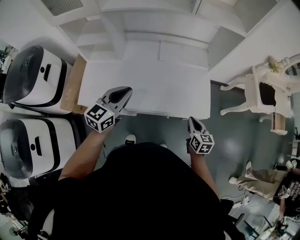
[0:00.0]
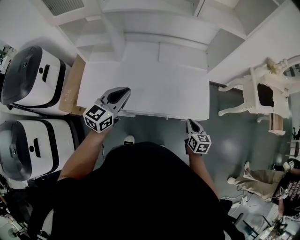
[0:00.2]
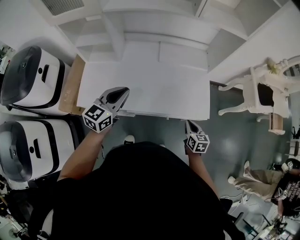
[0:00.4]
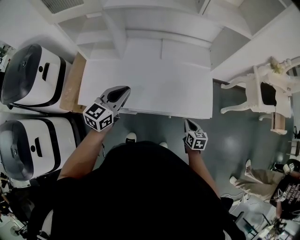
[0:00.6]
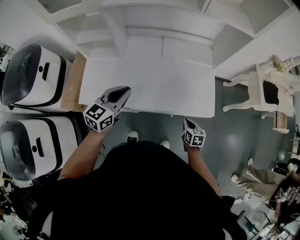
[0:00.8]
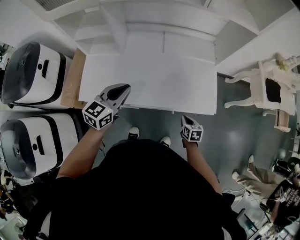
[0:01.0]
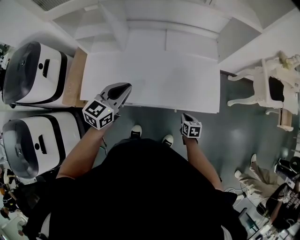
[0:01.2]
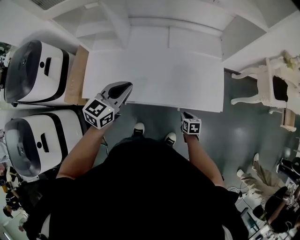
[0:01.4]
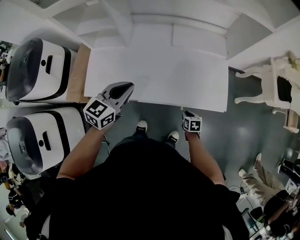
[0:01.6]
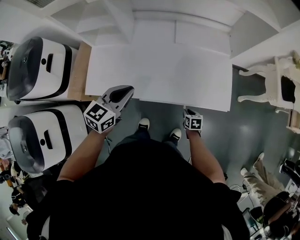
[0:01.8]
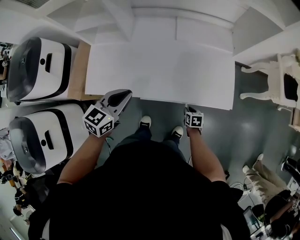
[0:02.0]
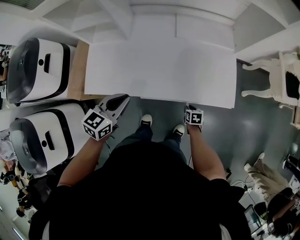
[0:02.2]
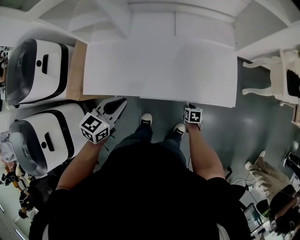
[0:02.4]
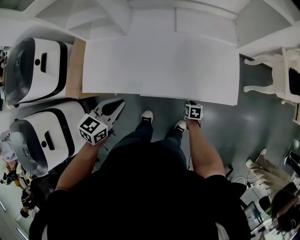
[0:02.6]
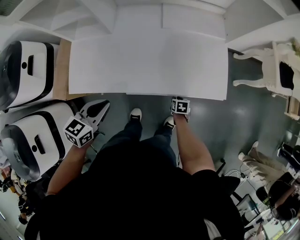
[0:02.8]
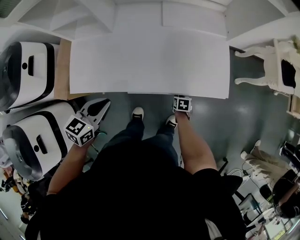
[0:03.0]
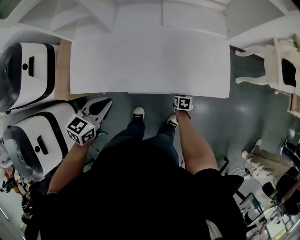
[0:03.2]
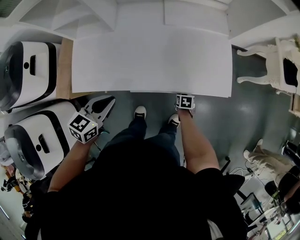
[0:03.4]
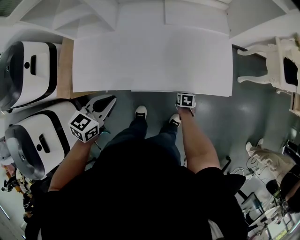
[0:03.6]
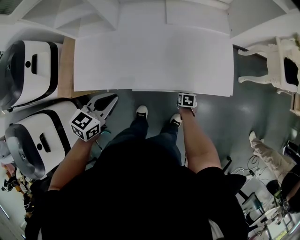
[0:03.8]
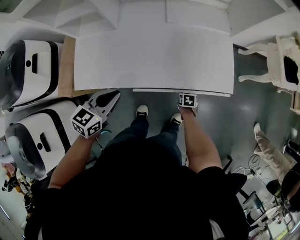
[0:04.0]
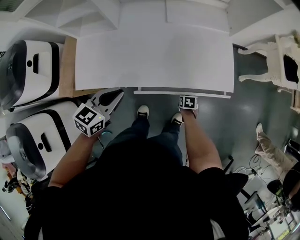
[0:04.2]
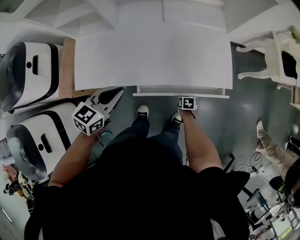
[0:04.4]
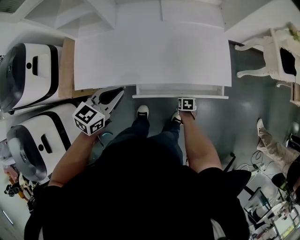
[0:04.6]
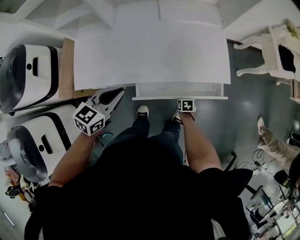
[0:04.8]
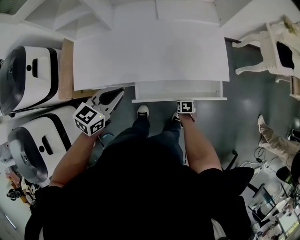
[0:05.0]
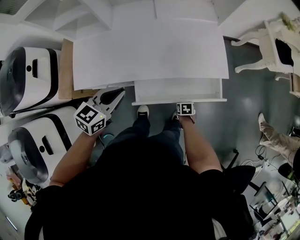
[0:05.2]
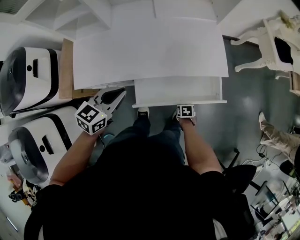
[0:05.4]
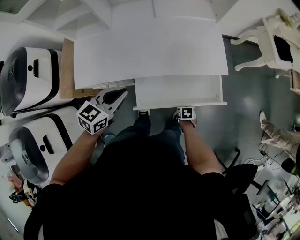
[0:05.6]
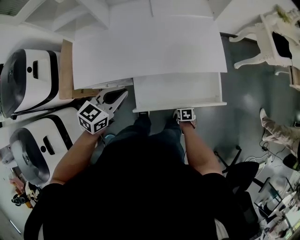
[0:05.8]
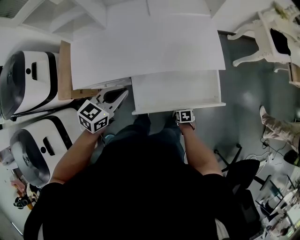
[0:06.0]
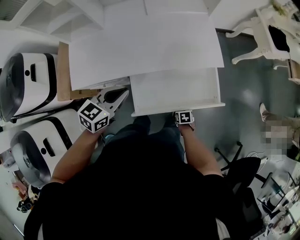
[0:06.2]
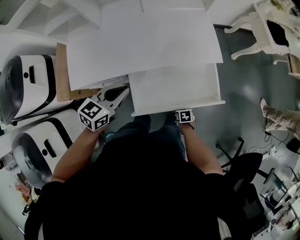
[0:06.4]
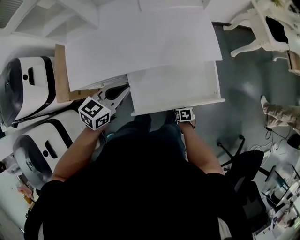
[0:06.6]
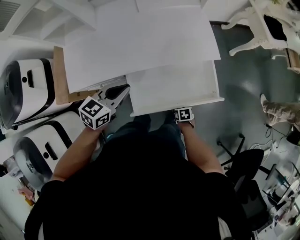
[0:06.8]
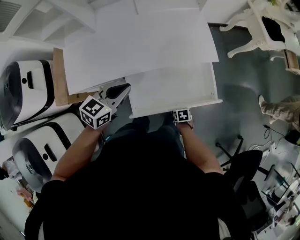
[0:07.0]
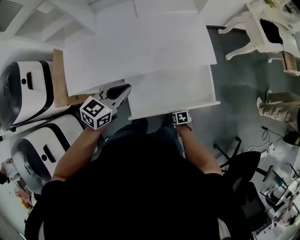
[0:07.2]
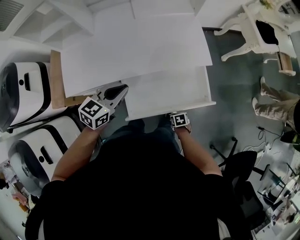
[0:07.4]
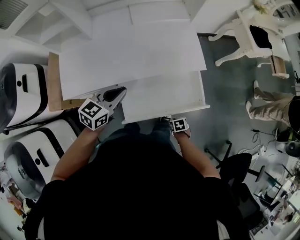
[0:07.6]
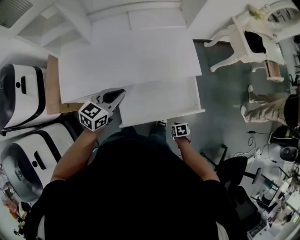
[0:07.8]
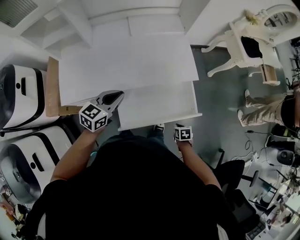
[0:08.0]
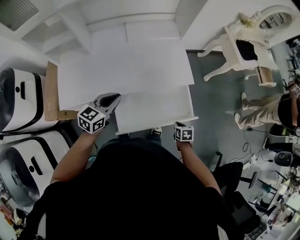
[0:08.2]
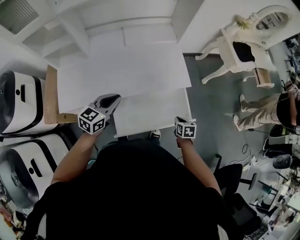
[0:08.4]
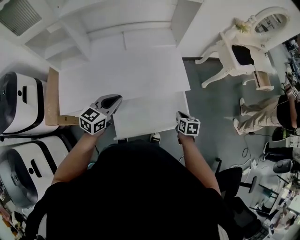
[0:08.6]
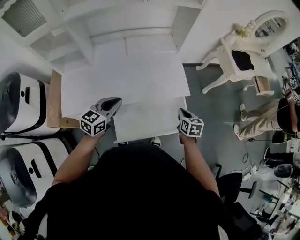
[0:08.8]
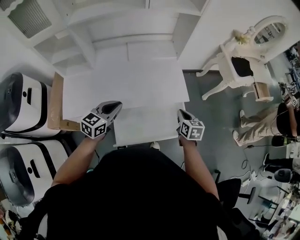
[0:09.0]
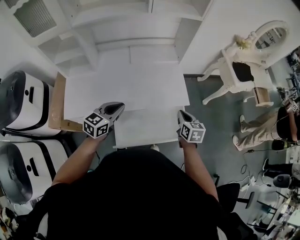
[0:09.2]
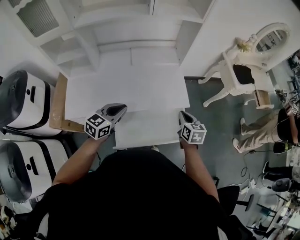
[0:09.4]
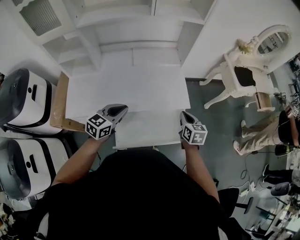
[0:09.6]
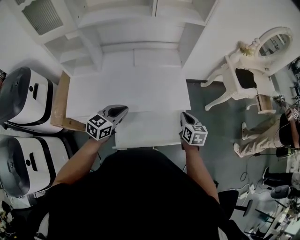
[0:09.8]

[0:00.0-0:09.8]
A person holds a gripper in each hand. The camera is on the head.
0:00.0 to 0:01.4: The right gripper moves downward, approximately 20 cm, and turns by some 30 degrees. The left gripper moves about 5 cm.
0:01.4 to 0:02.8: The left gripper shifts about 15 cm downward, backward and to the left; the right gripper travels downward by about 10 cm.
0:02.8 to 0:04.2: The grippers stay close to where they were, moving slightly.
0:04.2 to 0:05.6: The right gripper moves about 15 cm, while the left gripper changes place by approximately 5 cm.
0:05.6 to 0:07.0: The left gripper moves about 5 cm. Meanwhile the right gripper shifts by approximately 5 cm.
0:07.0 to 0:08.4: The left gripper ends up roughly 5 cm from where it was. Meanwhile the right gripper moves upward, approximately 20 cm, and changes its angle by roughly 20 degrees.
0:08.4 to 0:09.8: The left gripper changes place by about 5 cm. Meanwhile the right gripper moves upward and forward, approximately 20 cm, and rotates some 30 degrees.

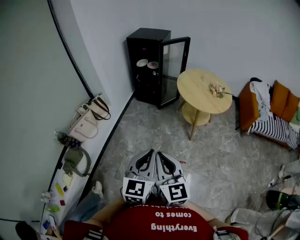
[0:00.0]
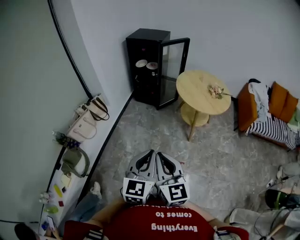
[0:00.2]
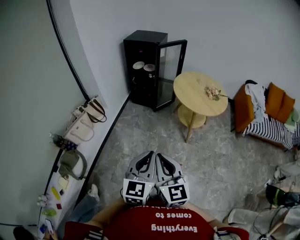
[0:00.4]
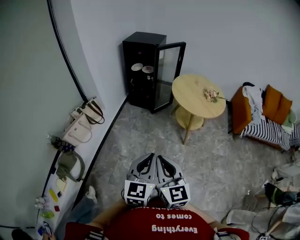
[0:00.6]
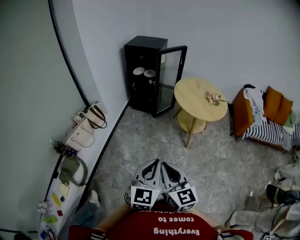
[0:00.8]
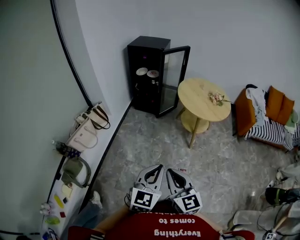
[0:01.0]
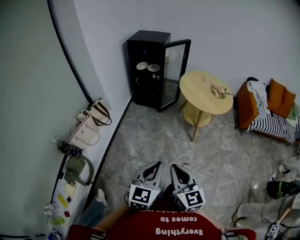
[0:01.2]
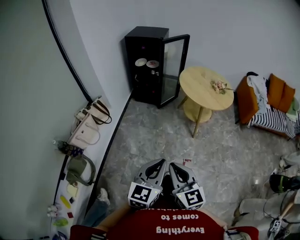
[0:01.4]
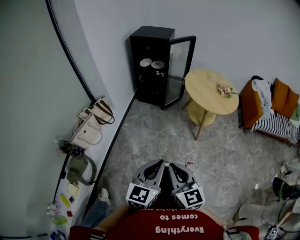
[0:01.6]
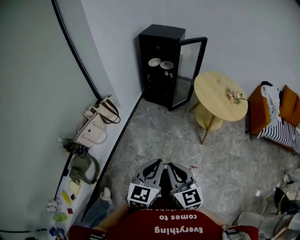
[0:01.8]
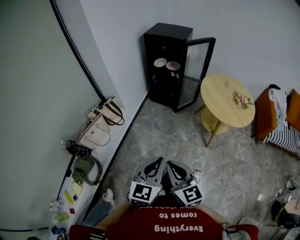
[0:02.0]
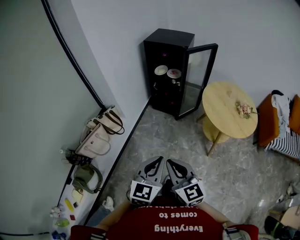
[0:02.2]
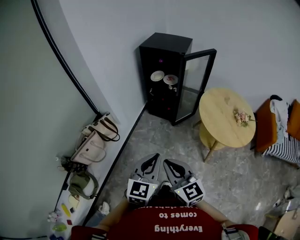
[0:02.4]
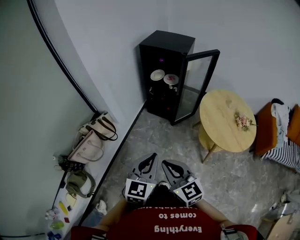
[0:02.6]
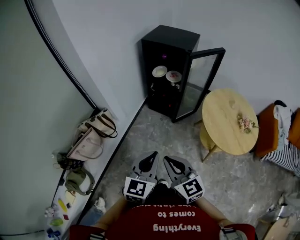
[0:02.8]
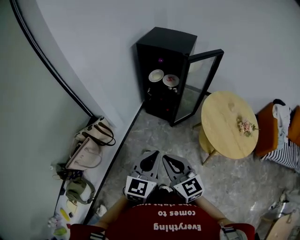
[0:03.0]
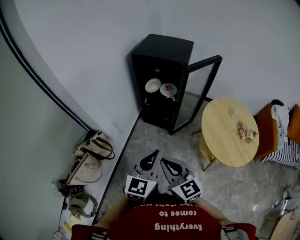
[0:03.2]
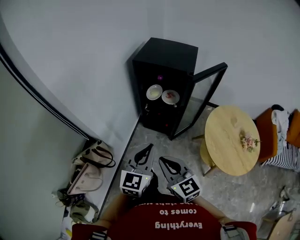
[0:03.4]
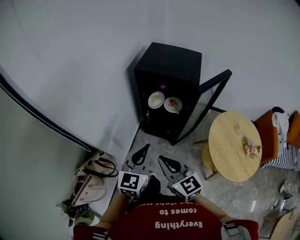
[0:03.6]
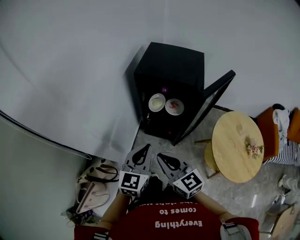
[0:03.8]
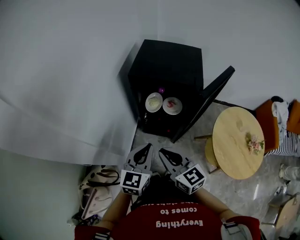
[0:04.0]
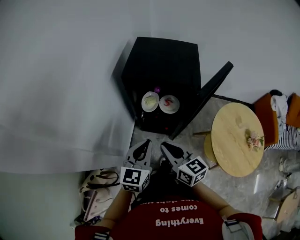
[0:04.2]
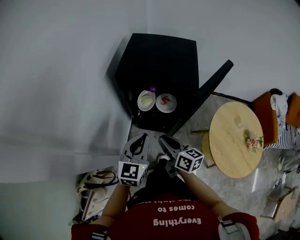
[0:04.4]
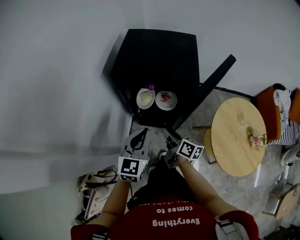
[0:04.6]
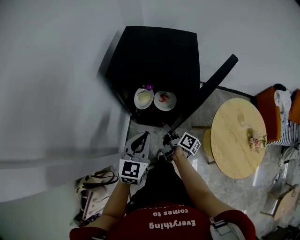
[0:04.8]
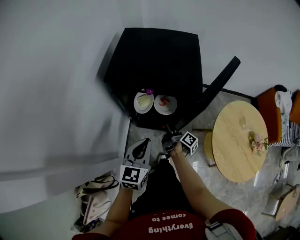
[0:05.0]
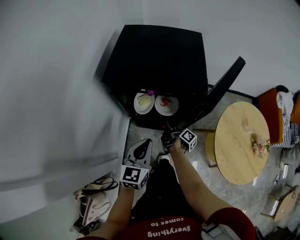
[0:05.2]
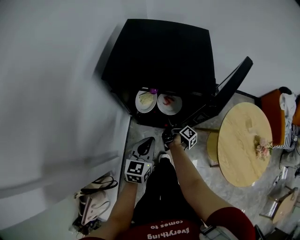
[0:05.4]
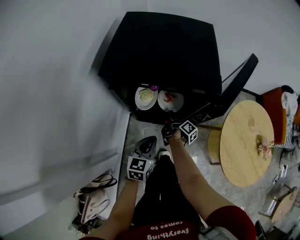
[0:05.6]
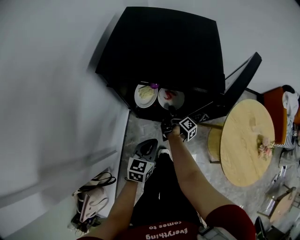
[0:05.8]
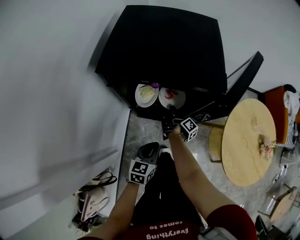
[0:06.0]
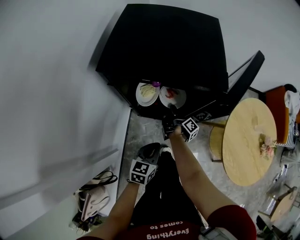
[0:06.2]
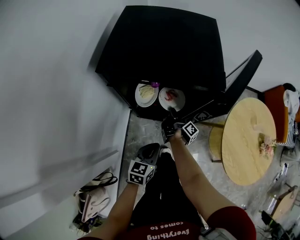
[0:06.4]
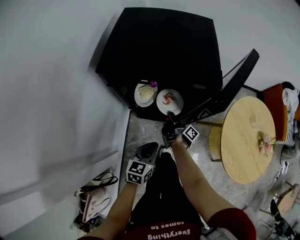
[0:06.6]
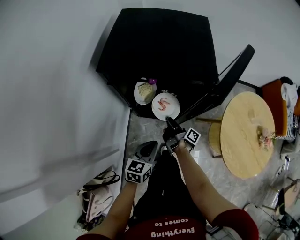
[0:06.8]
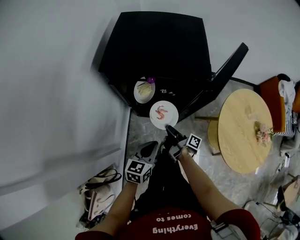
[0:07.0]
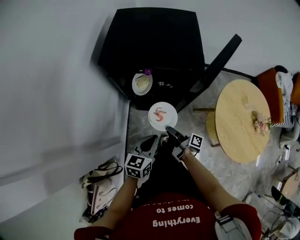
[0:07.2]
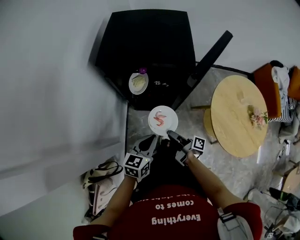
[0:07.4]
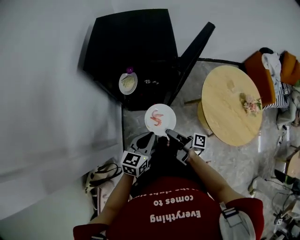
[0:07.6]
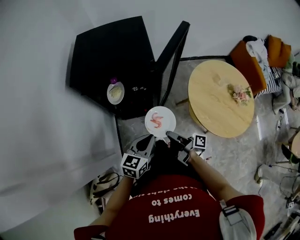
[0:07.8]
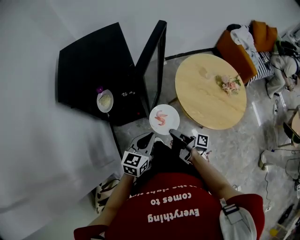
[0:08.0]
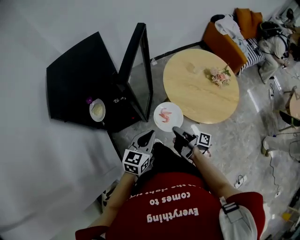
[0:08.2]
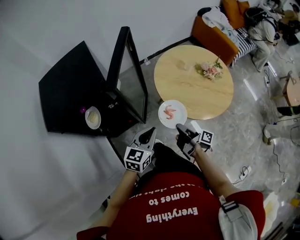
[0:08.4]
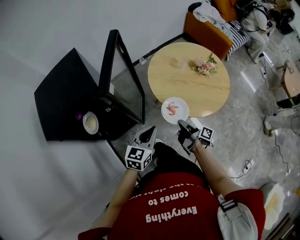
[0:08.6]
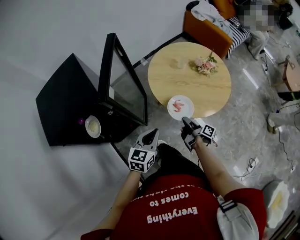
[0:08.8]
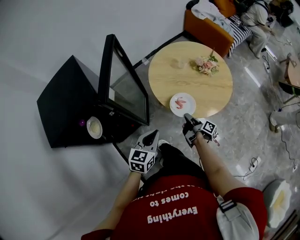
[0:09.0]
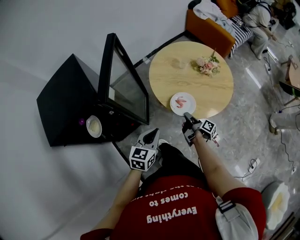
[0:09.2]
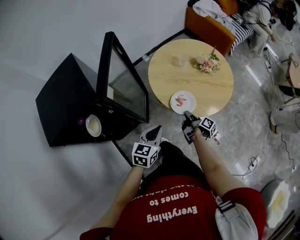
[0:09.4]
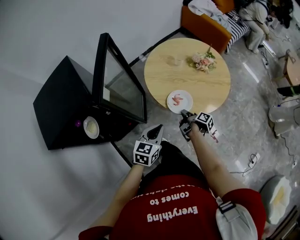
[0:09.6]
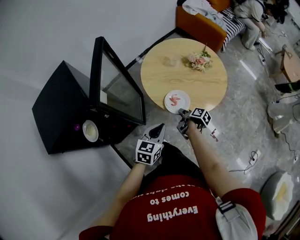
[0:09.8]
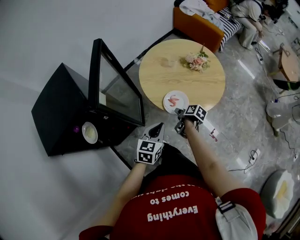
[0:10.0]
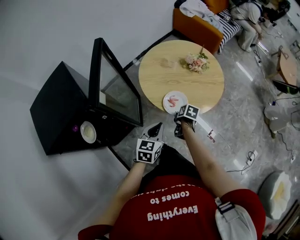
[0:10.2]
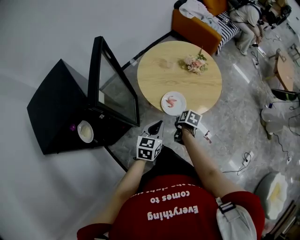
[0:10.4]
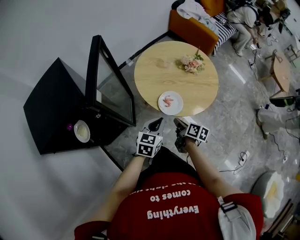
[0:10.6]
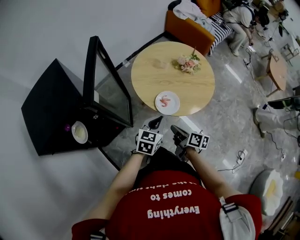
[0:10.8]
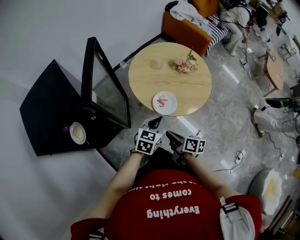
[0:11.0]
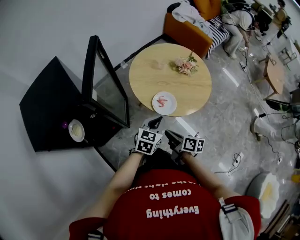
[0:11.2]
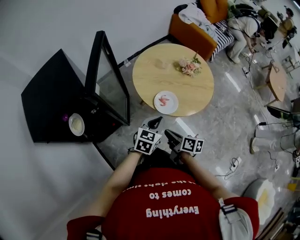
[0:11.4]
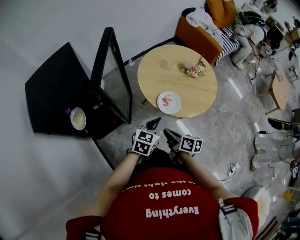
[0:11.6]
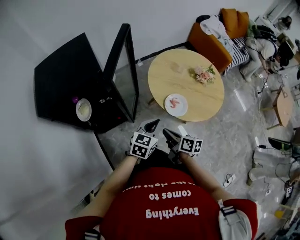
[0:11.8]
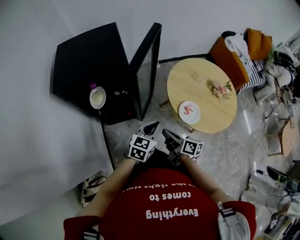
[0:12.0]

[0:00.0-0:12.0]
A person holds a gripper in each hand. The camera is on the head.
0:00.0 to 0:01.6: The left gripper moves some 10 cm.
0:01.6 to 0:03.0: The left gripper changes place by some 40 cm.
0:03.0 to 0:04.4: The left gripper shifts by approximately 50 cm.
0:04.4 to 0:06.0: The left gripper heads downward, covering roughly 25 cm, and rotates some 30 degrees.
0:06.0 to 0:07.6: The left gripper travels upward by approximately 15 cm.
0:07.6 to 0:09.0: The left gripper moves approximately 20 cm, and swivels roughly 30 degrees.
0:09.0 to 0:10.4: The left gripper moves roughly 10 cm.
0:10.4 to 0:12.0: The left gripper shifts by about 10 cm.

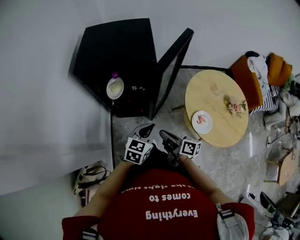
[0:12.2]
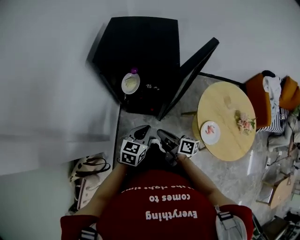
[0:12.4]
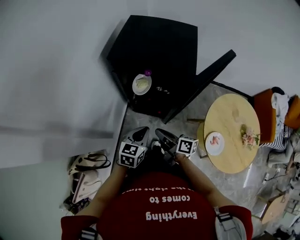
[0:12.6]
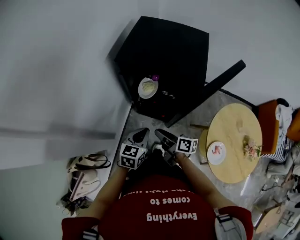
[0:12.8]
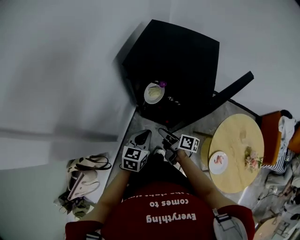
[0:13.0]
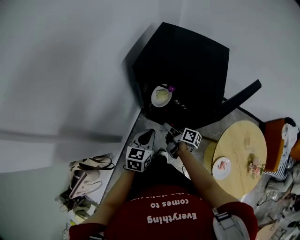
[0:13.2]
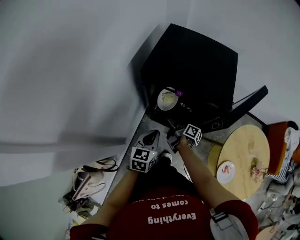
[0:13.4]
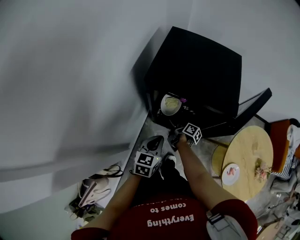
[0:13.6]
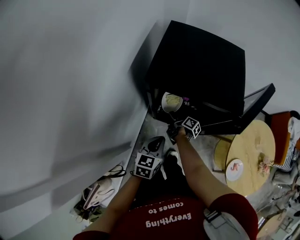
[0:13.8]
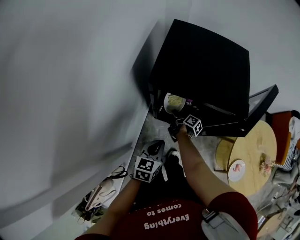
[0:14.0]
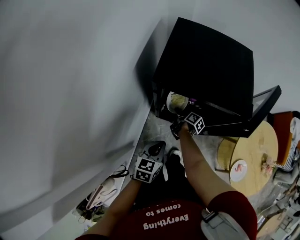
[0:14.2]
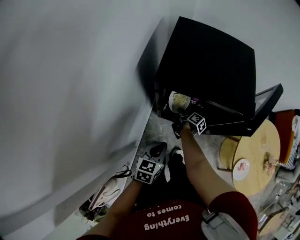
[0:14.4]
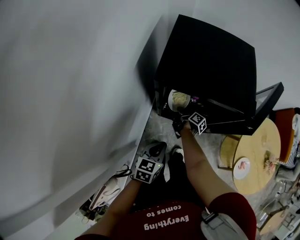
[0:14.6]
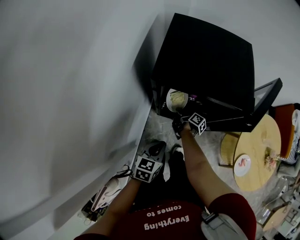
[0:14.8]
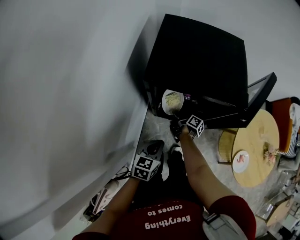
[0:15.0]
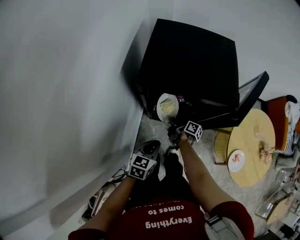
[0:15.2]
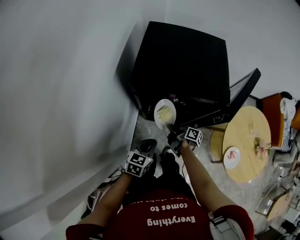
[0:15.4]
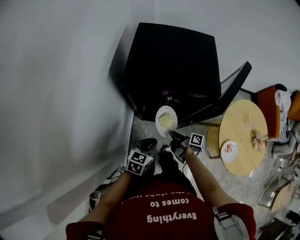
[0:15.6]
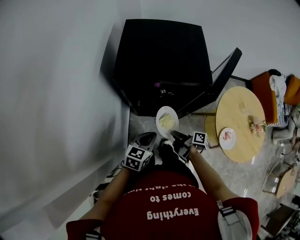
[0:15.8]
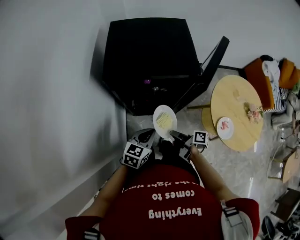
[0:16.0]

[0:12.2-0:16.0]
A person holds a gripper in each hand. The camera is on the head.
0:12.2 to 0:13.4: The left gripper shifts by about 25 cm, and rotates roughly 40 degrees.
0:13.4 to 0:14.8: The left gripper shifts by approximately 5 cm.
0:14.8 to 0:16.0: The left gripper shifts by some 10 cm, and turns by some 20 degrees.
